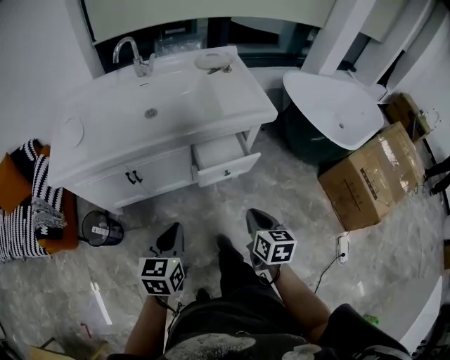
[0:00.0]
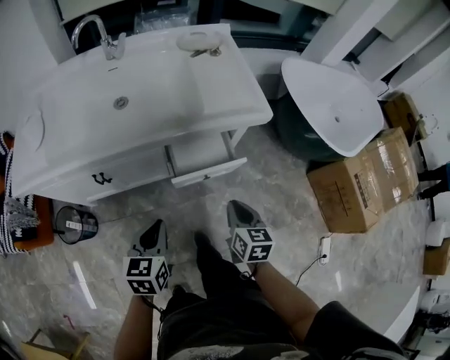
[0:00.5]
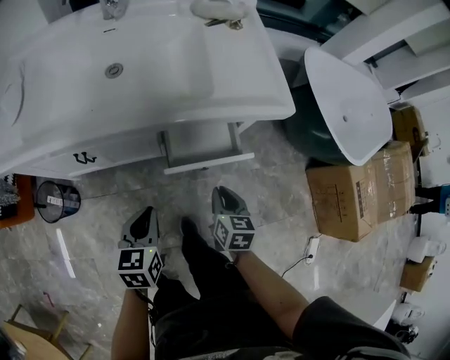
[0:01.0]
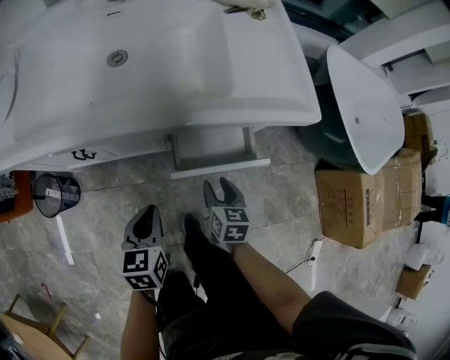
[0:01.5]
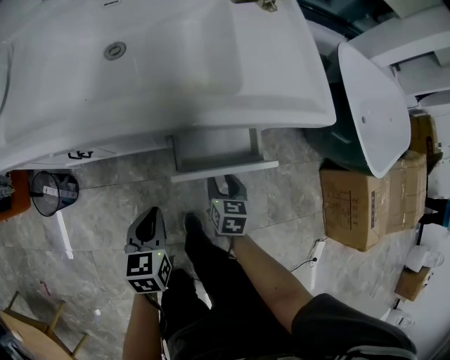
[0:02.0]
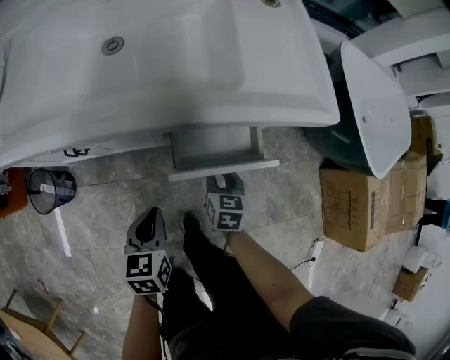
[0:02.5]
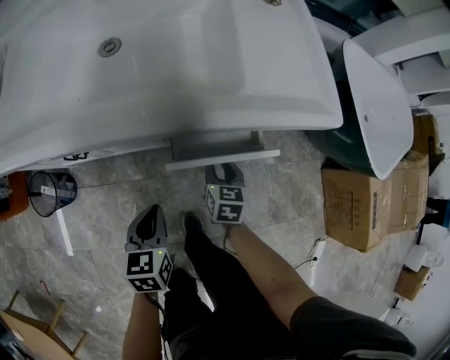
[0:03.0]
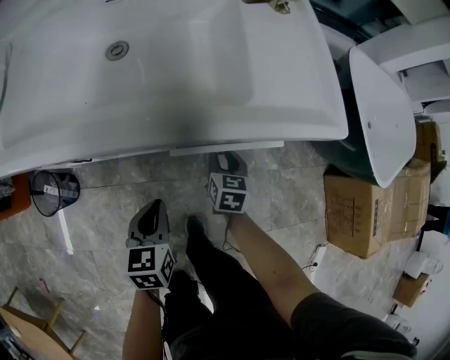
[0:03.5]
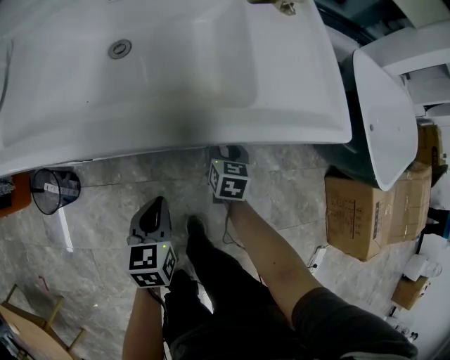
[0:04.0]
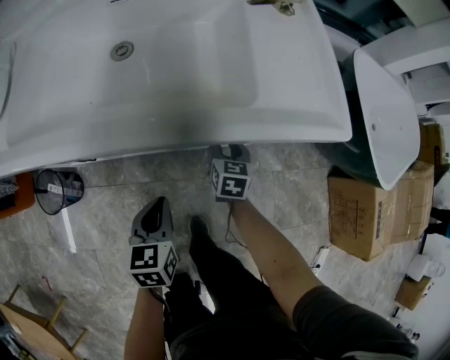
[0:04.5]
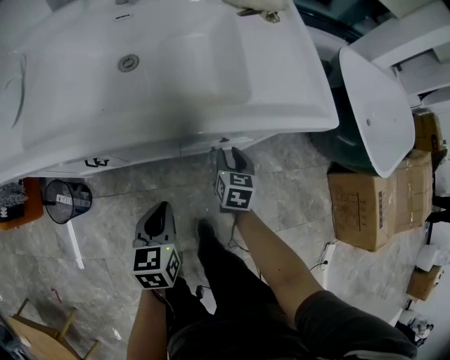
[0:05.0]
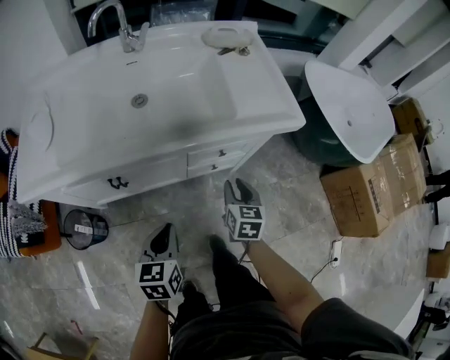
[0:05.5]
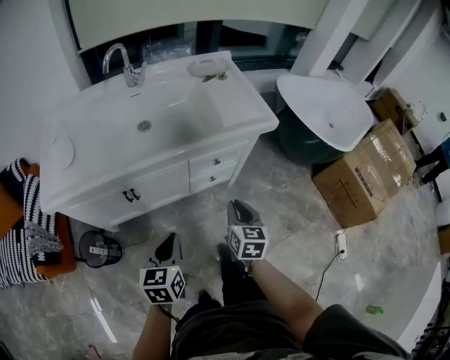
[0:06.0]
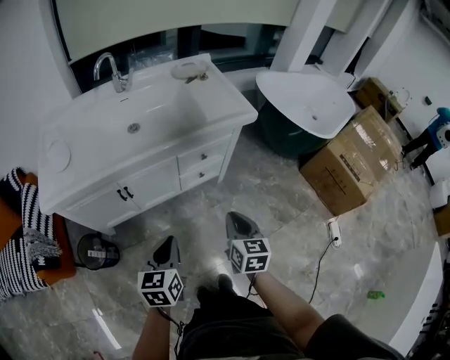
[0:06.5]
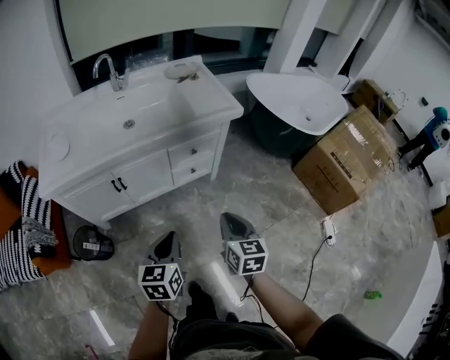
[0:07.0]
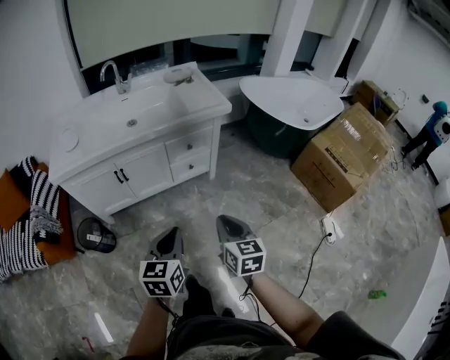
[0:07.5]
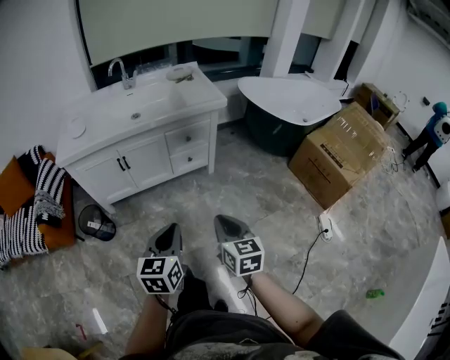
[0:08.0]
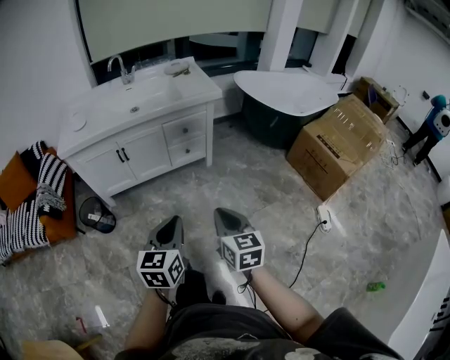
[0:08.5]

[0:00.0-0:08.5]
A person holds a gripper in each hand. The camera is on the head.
0.0 to 2.0 s: The two grippers go approximately 30 cm downward and forward. The left gripper rotates about 20 degrees. The right gripper opens up.
2.0 to 4.0 s: The right gripper is displaced forward by some 15 cm.
4.0 to 6.5 s: Both grippers move backward and upward, roughly 40 cm. The right gripper swivels approximately 20 degrees, and closes. Meanwhile the left gripper swivels approximately 20 degrees.
6.5 to 8.5 s: The right gripper shifts roughly 35 cm backward; the left gripper travels backward and to the right by approximately 35 cm.

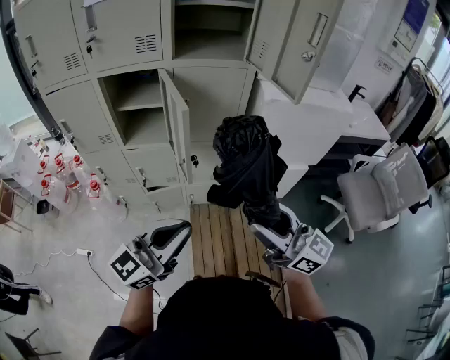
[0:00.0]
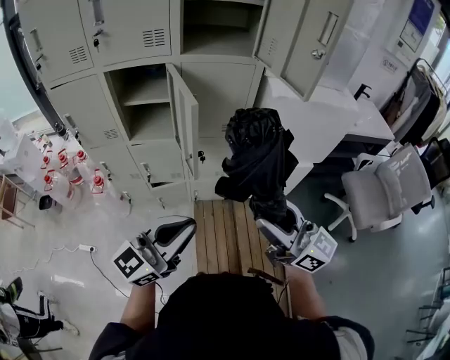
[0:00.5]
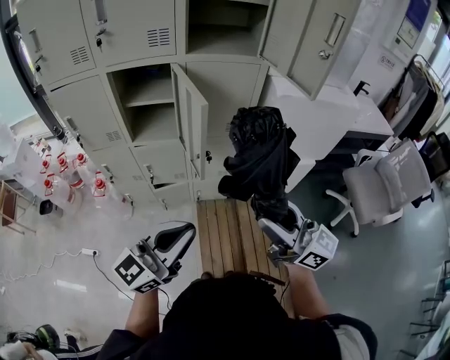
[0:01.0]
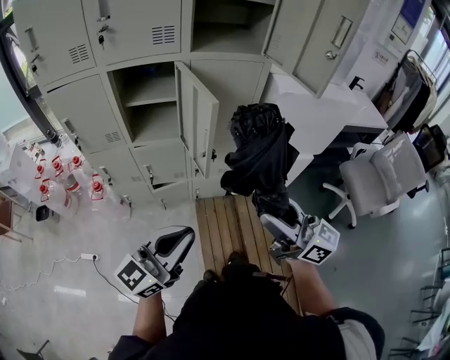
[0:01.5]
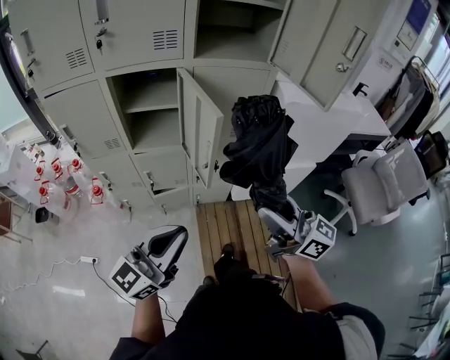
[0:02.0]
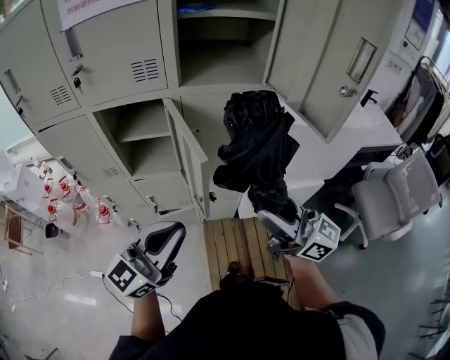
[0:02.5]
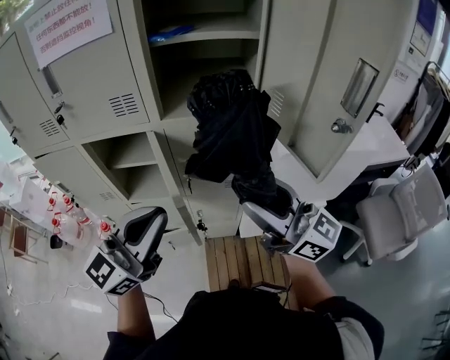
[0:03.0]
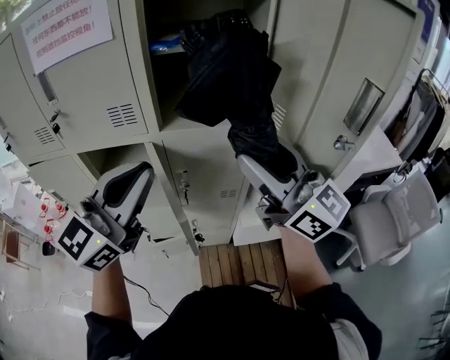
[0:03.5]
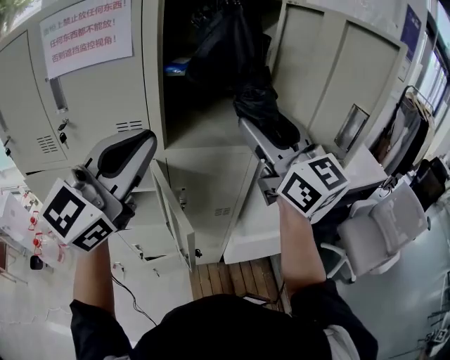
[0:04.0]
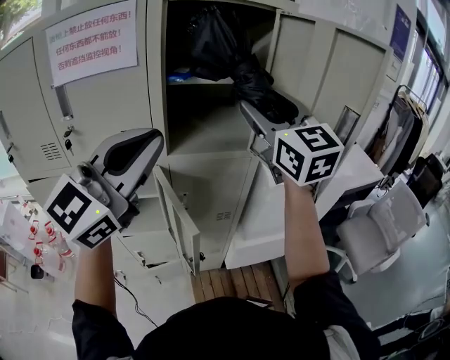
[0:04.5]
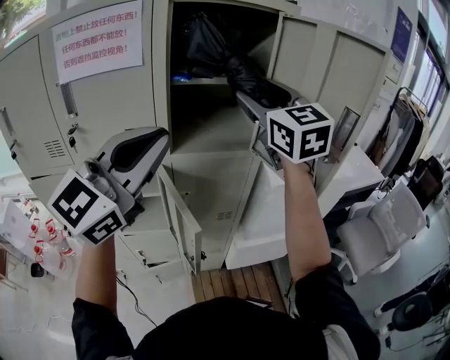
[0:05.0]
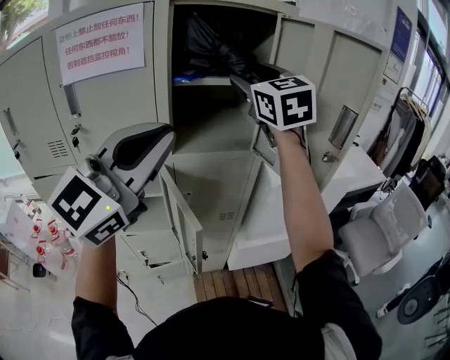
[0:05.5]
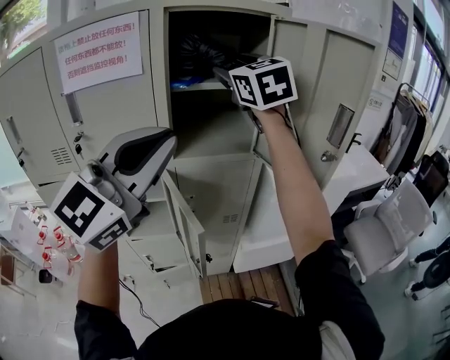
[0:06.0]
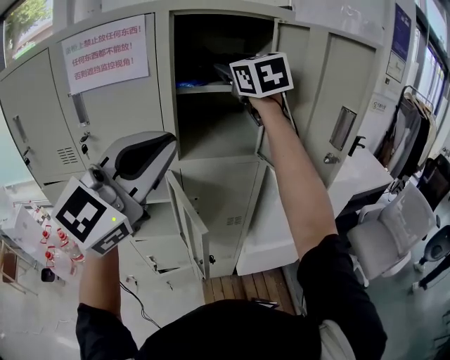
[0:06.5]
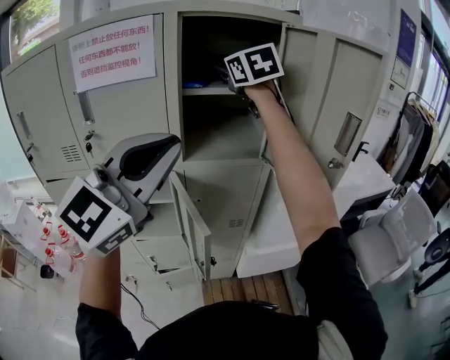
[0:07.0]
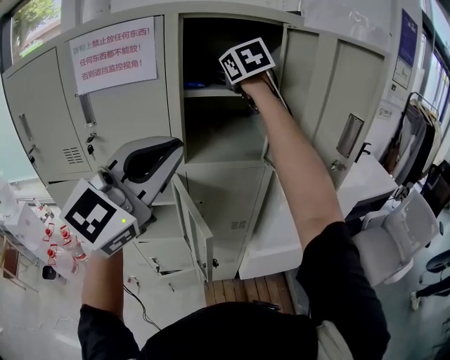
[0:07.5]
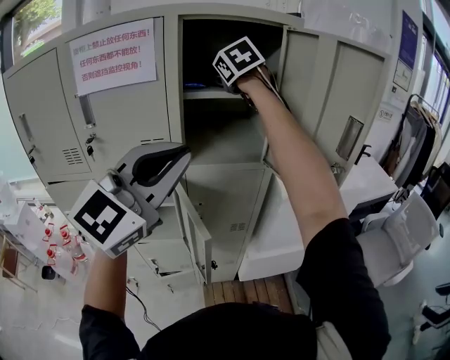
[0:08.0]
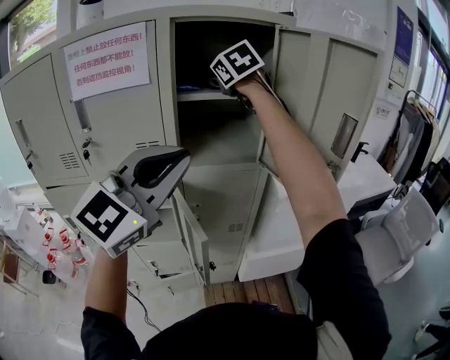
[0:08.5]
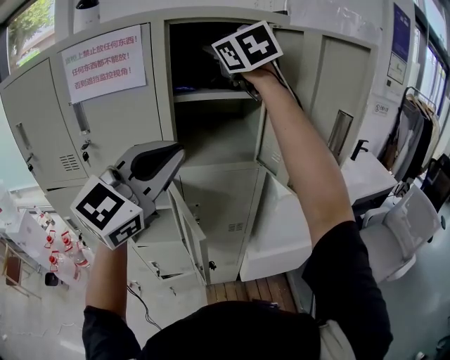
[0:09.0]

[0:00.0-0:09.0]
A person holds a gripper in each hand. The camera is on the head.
0.0 to 2.0 s: The left gripper heads to the left, covering about 10 cm; the right gripper is displaced to the left and forward by some 10 cm.
2.0 to 4.5 s: The right gripper shifts roughly 50 cm forward and upward, and rolls counterclockwise, seen from behind, by approximately 50 degrees; the left gripper travels upward and forward by approximately 40 cm, and swivels about 30 degrees.
4.5 to 7.0 s: The right gripper travels forward, to the left and upward by about 20 cm.
7.0 to 9.0 s: The right gripper travels upward by about 5 cm, and closes its fingers.

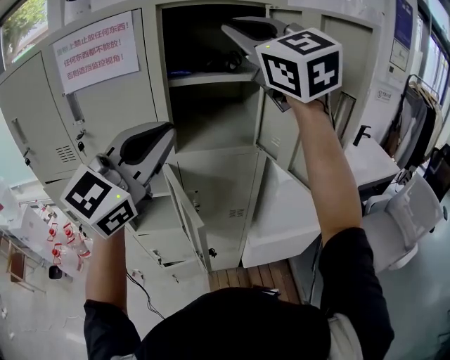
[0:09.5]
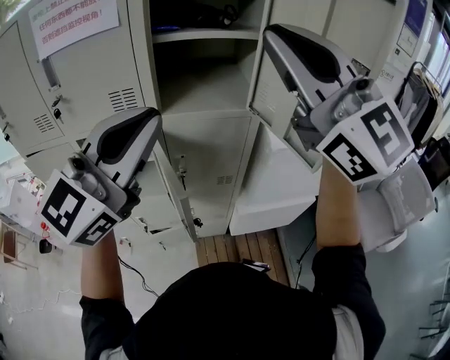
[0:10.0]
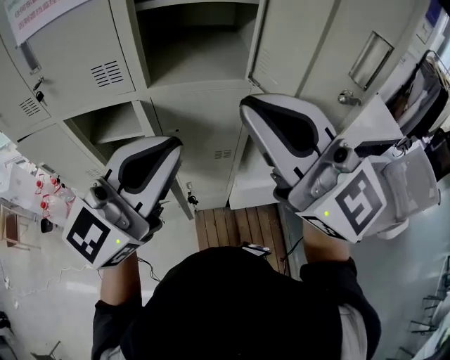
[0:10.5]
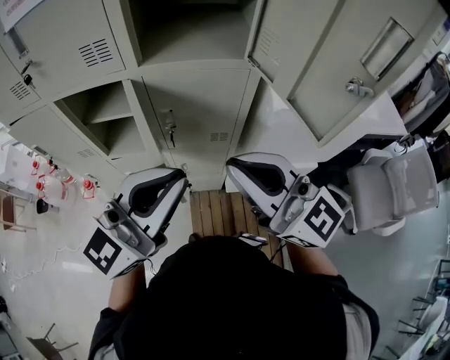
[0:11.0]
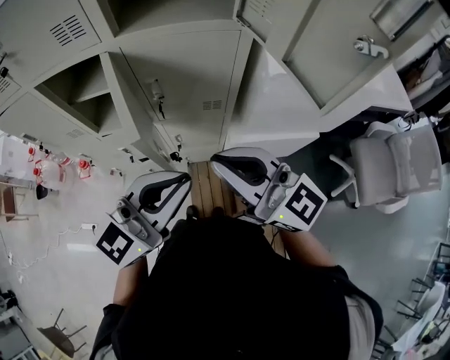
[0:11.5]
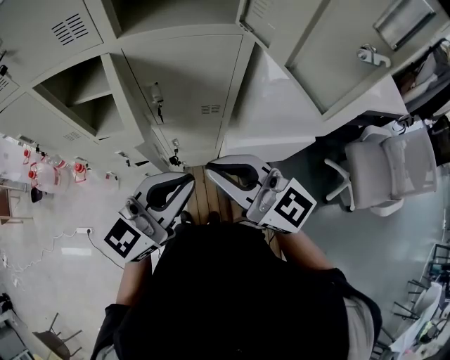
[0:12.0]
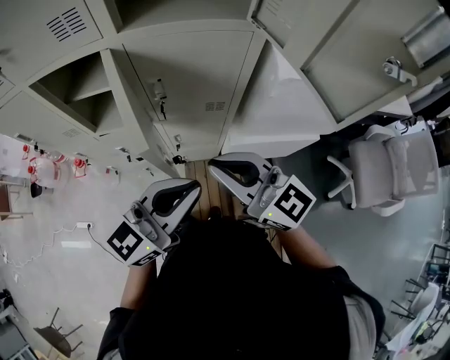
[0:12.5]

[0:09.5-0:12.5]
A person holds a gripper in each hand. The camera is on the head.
9.5 to 11.0 s: The left gripper goes about 20 cm downward, while the right gripper heads downward and backward, covering approximately 35 cm, and changes its angle by approximately 40 degrees.
11.0 to 12.5 s: Both grippers move downward, some 15 cm.

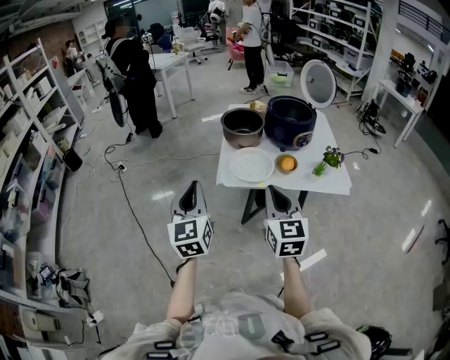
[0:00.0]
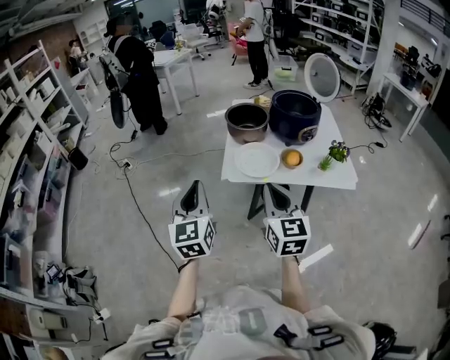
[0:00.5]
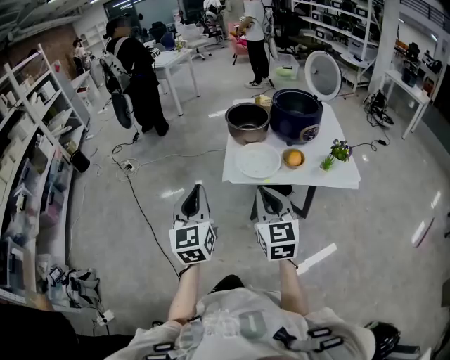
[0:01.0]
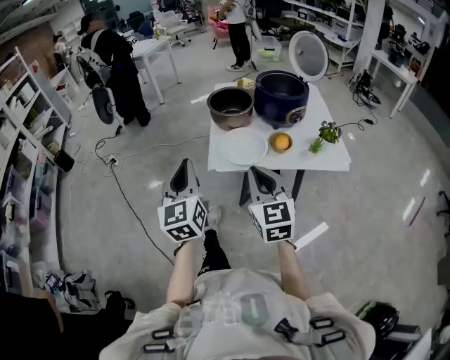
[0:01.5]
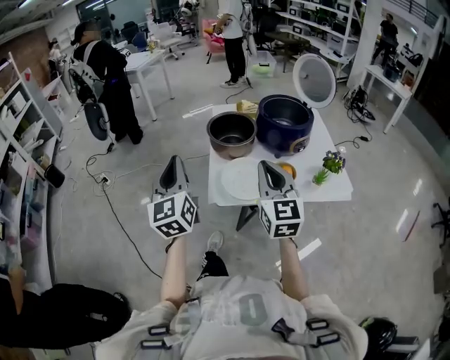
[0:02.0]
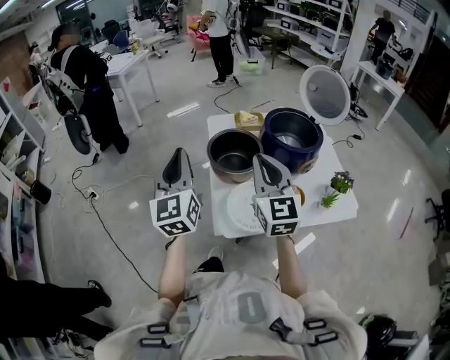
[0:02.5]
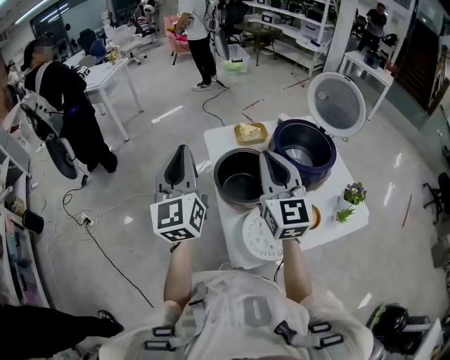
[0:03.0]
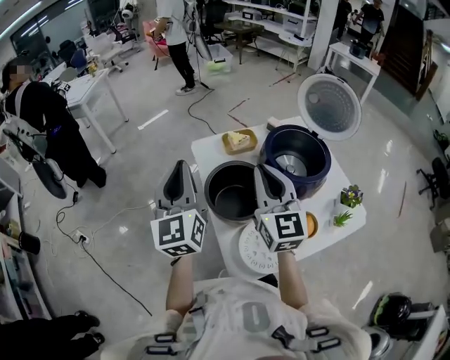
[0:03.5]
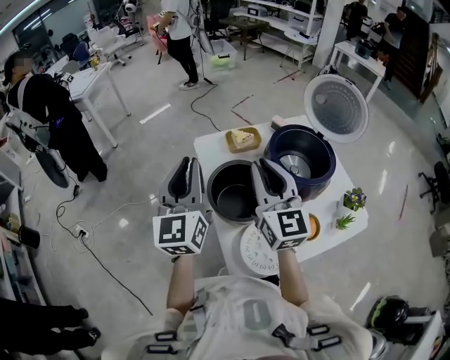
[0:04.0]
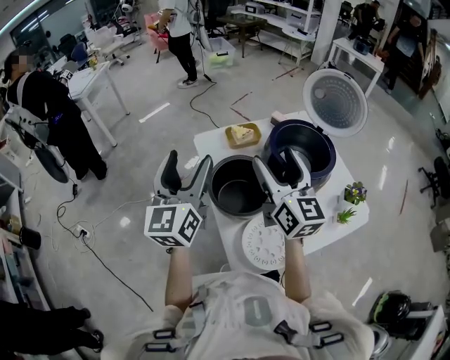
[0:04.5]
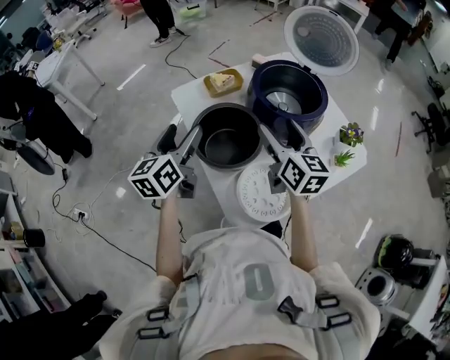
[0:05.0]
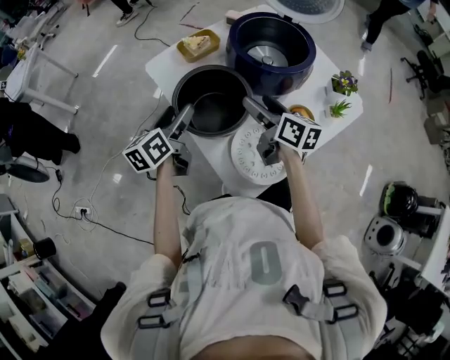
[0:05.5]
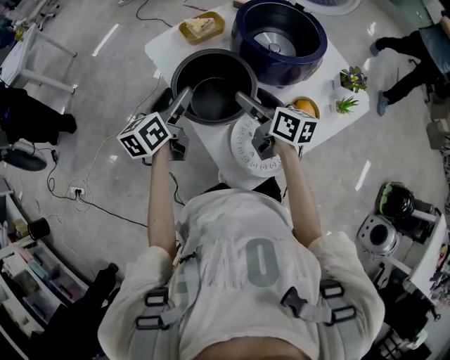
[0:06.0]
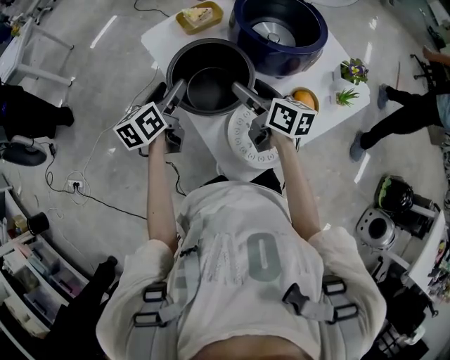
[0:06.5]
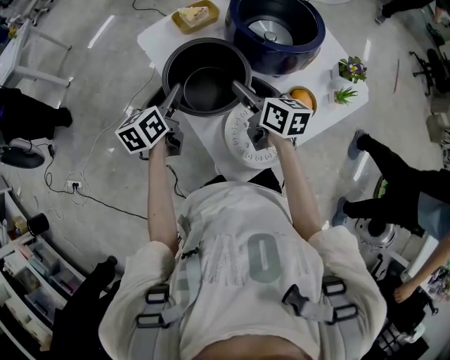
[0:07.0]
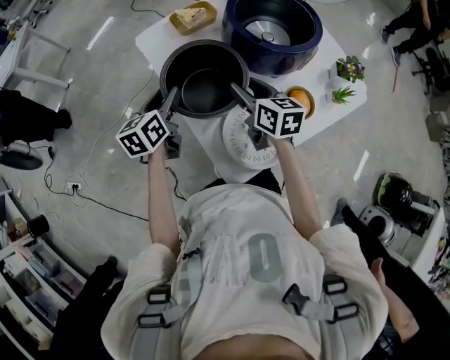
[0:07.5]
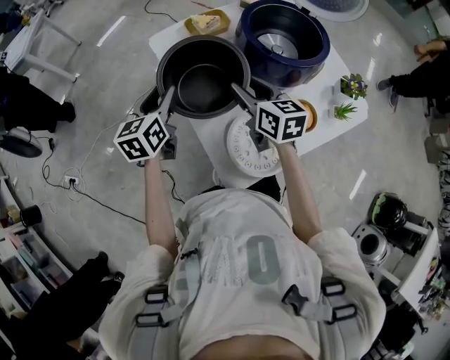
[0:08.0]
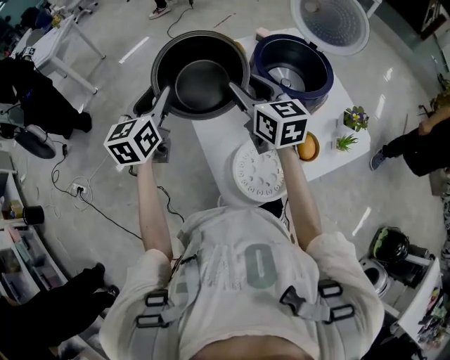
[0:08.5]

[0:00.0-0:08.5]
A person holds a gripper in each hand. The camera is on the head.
0.0 to 2.0 s: The grippers both shift forward by approximately 15 cm.
2.0 to 4.0 s: The grippers both shift forward by approximately 35 cm. The left gripper turns by some 30 degrees.
4.0 to 6.5 s: The grippers both shift downward by some 25 cm. The left gripper tips its fingers downward by some 30 degrees, and opens its fingers, while the right gripper twists some 50 degrees clockwise, seen from behind, and opens up.
6.5 to 8.5 s: Both grippers travel together upward, about 15 cm. The right gripper rotates roughly 30 degrees, and closes; the left gripper changes its angle by some 30 degrees, and closes its fingers.
